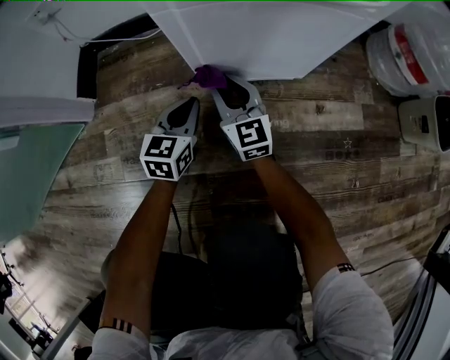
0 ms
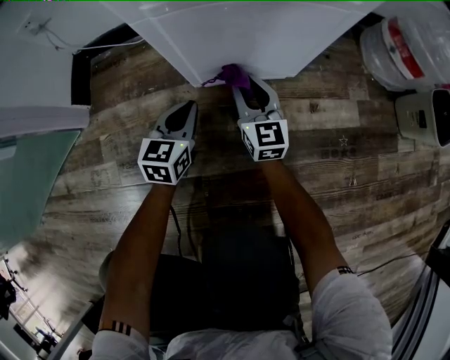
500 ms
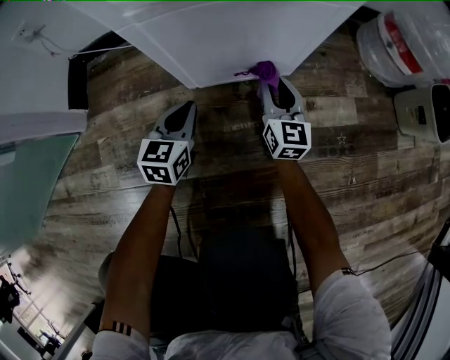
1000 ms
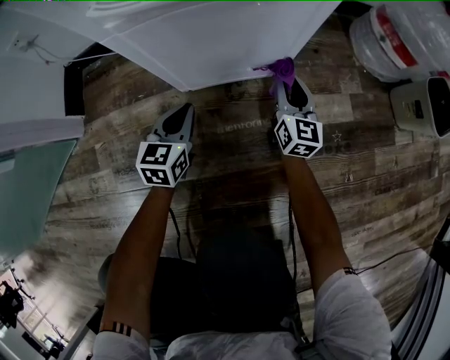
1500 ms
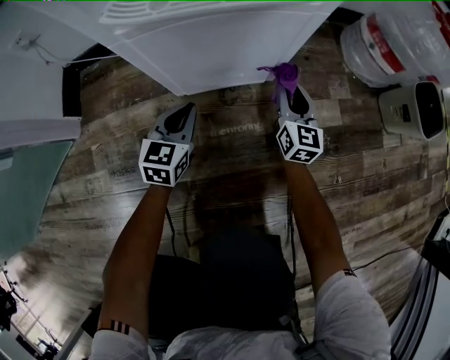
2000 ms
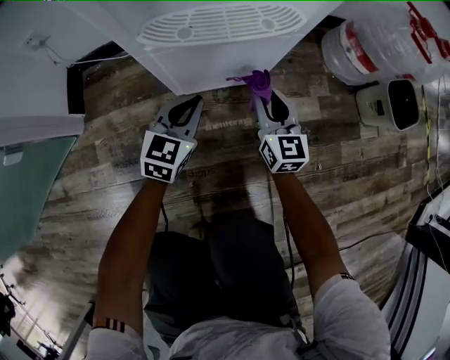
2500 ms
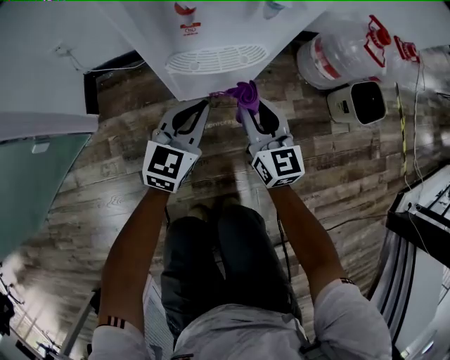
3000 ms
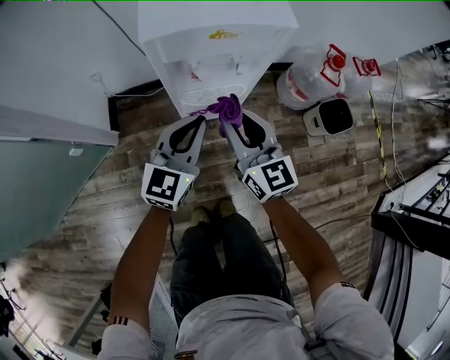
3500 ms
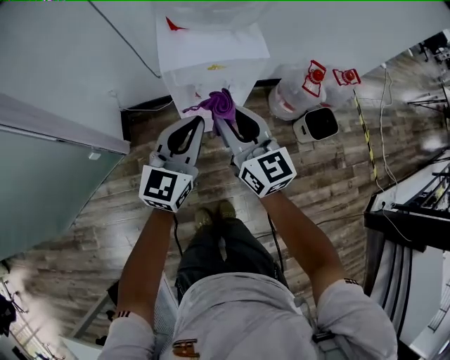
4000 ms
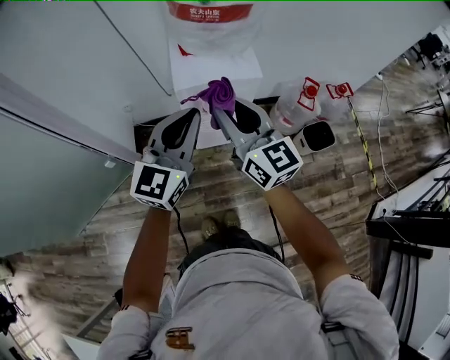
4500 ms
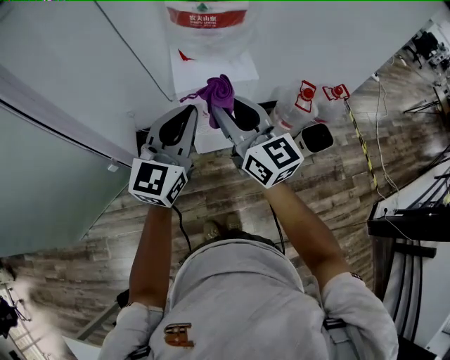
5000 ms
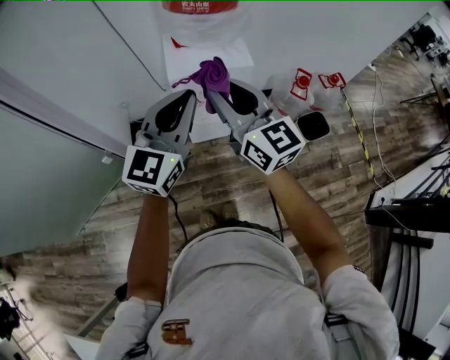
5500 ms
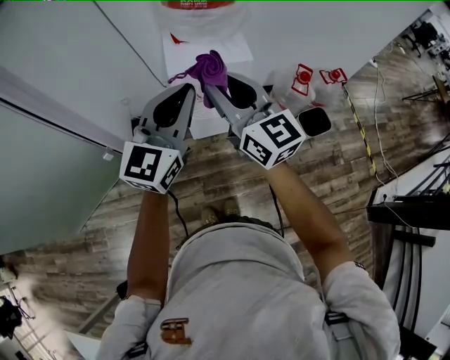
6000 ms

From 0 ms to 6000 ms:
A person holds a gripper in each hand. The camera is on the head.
From 0 ms to 2000 ms: The left gripper is displaced to the right by about 5 cm, while the right gripper heads to the right, covering about 25 cm, and turns by approximately 30 degrees.
From 2000 ms to 4000 ms: Both grippers move upward, about 80 cm. The right gripper turns by some 30 degrees, while the left gripper swivels about 30 degrees.
From 4000 ms to 6000 ms: Both grippers travel together upward, roughly 20 cm.

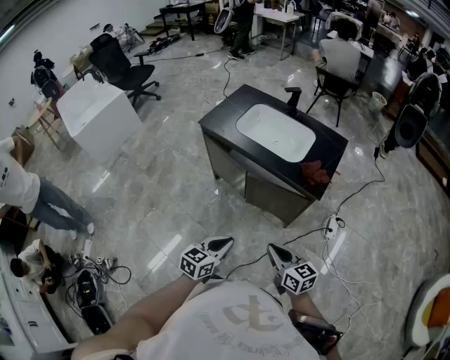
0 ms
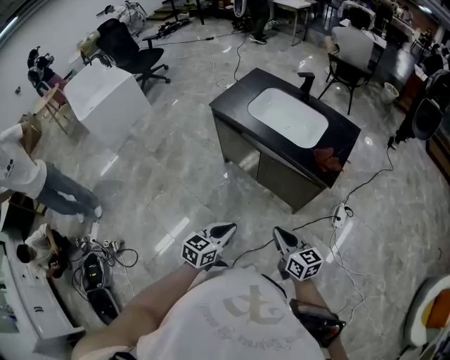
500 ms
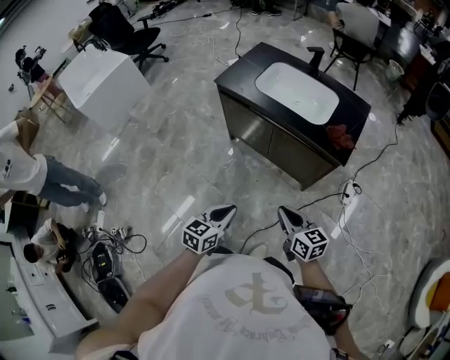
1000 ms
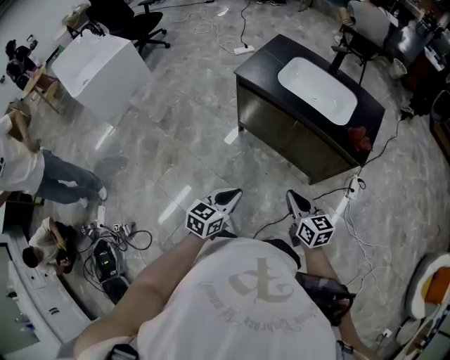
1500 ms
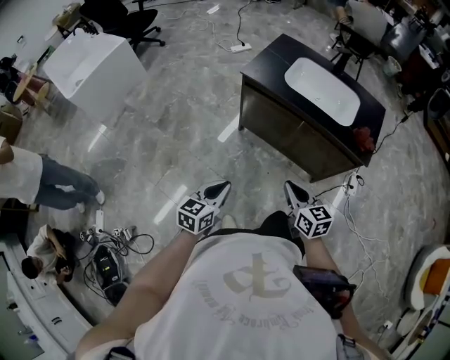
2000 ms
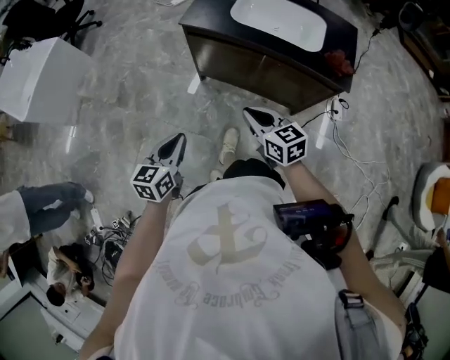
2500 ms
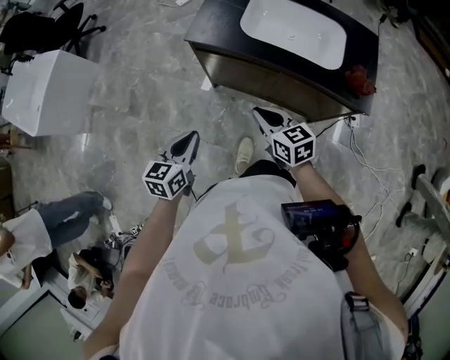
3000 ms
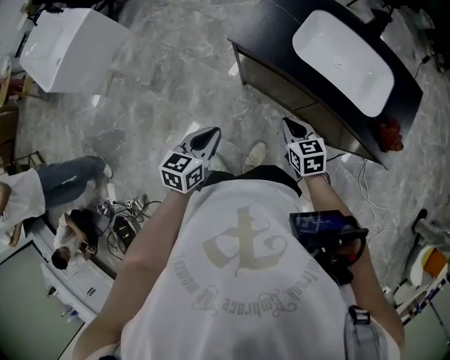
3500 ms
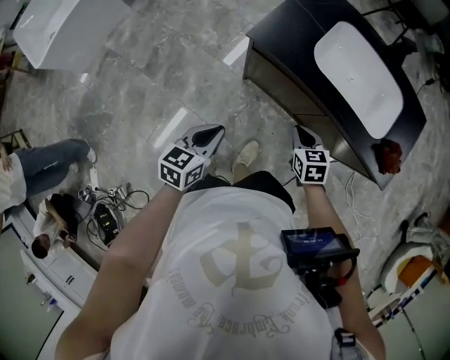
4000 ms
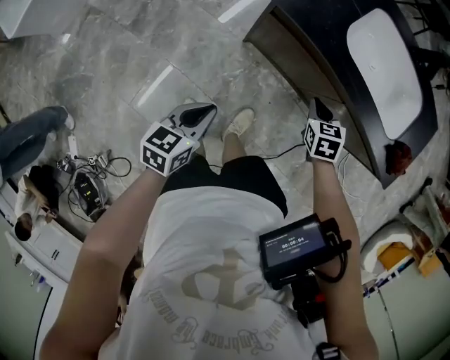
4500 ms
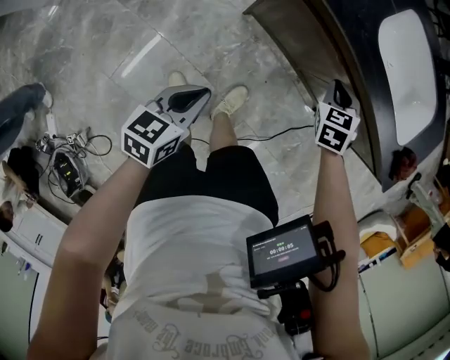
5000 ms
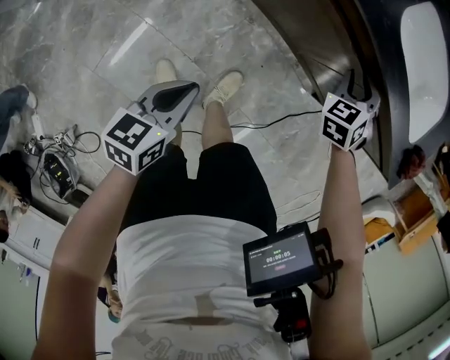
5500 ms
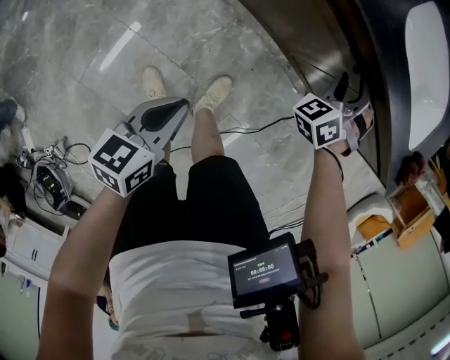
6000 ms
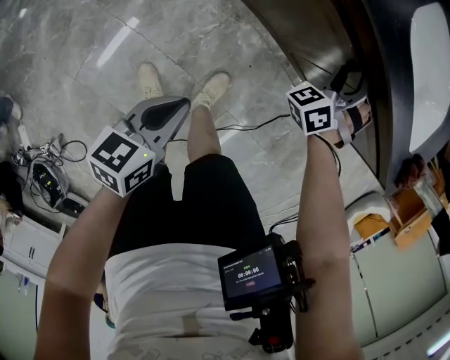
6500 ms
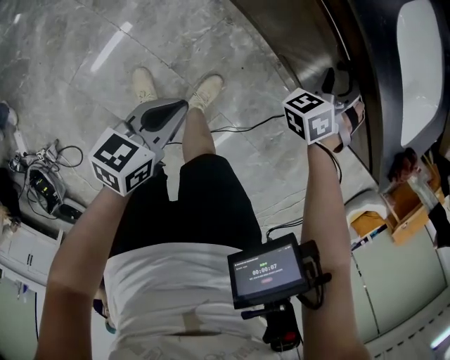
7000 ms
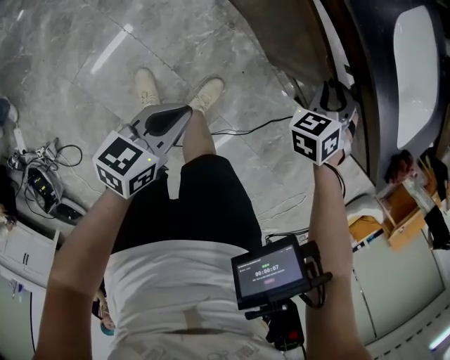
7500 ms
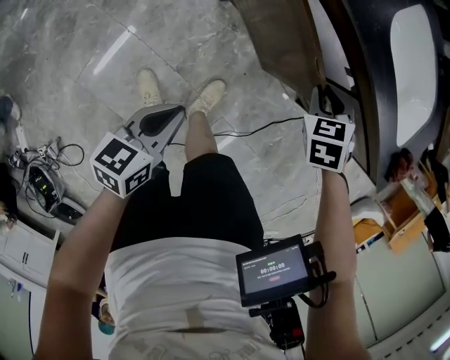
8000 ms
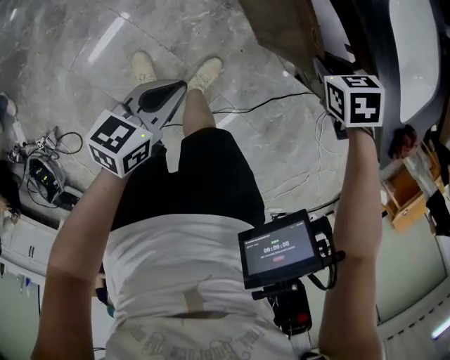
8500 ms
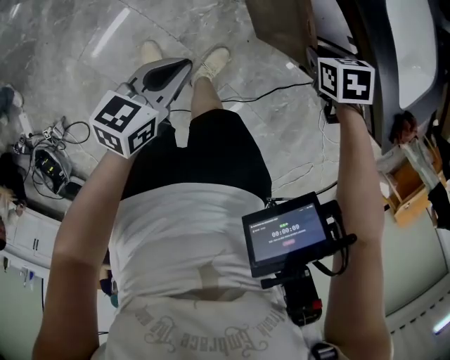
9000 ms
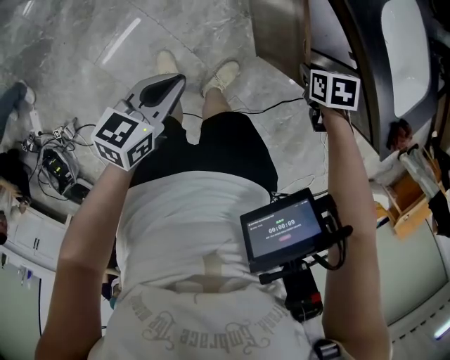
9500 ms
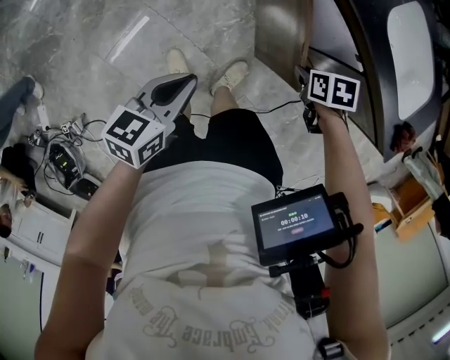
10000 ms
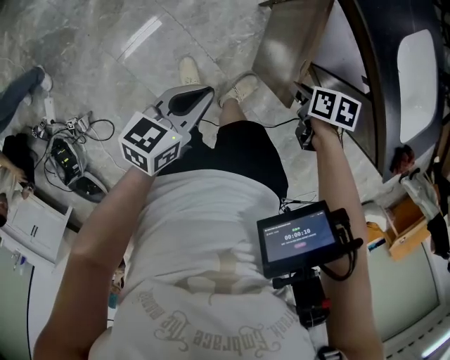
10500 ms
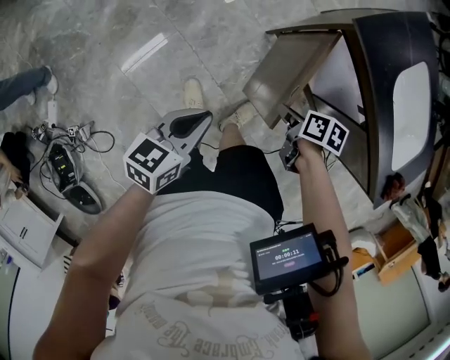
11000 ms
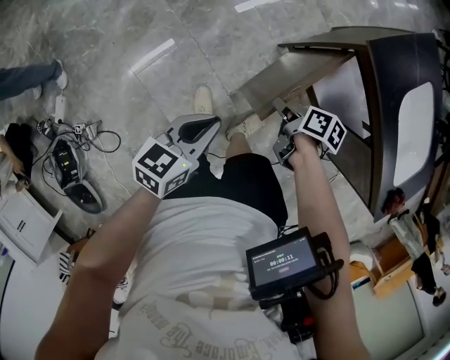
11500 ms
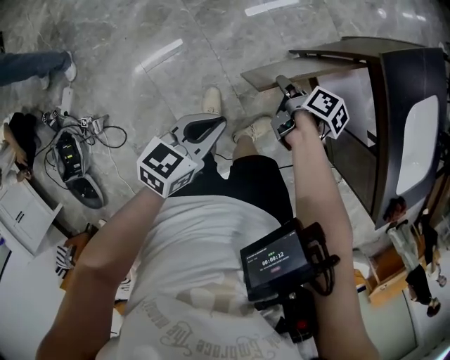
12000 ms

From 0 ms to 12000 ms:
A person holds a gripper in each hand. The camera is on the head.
From 0 ms to 2000 ms: Both grippers travel together to the left, about 25 cm.
From 2000 ms to 4000 ms: The right gripper is displaced forward and downward by roughly 35 cm, and turns by approximately 30 degrees; the left gripper goes some 25 cm forward.
From 4000 ms to 6000 ms: The left gripper is displaced downward by approximately 20 cm; the right gripper shifts by about 20 cm, swivels about 70 degrees, and opens up.
From 6000 ms to 8000 ms: The right gripper travels backward by approximately 10 cm, tilts its fingers approximately 30 degrees downward, and closes.
From 8000 ms to 10000 ms: The right gripper changes place by approximately 10 cm, and turns by some 40 degrees. The left gripper goes roughly 10 cm upward.
From 10000 ms to 12000 ms: The right gripper moves about 25 cm, and swivels some 40 degrees; the left gripper shifts by about 10 cm.

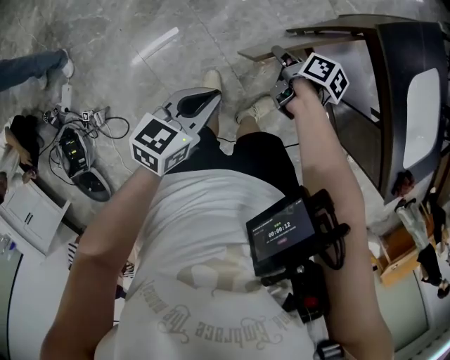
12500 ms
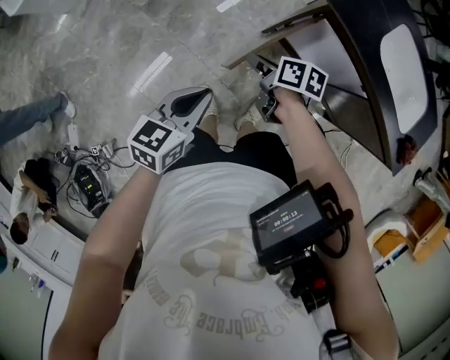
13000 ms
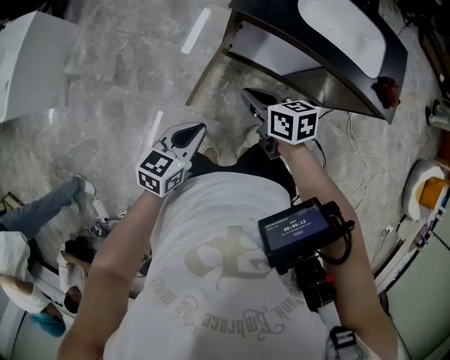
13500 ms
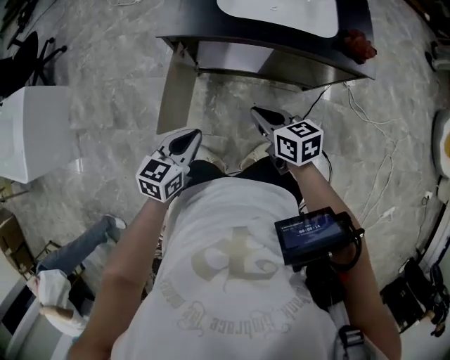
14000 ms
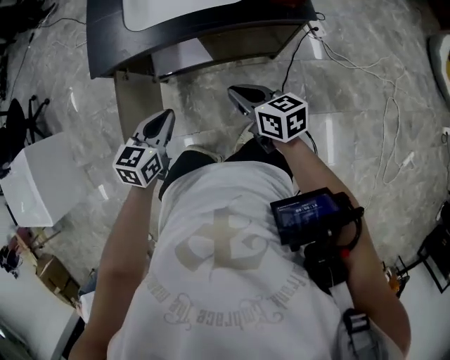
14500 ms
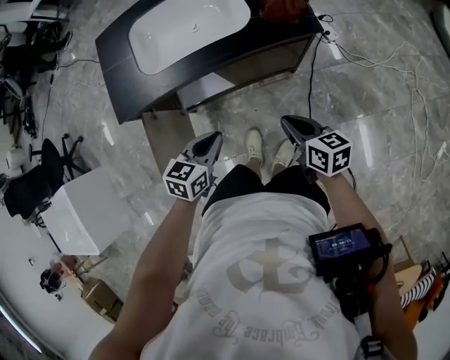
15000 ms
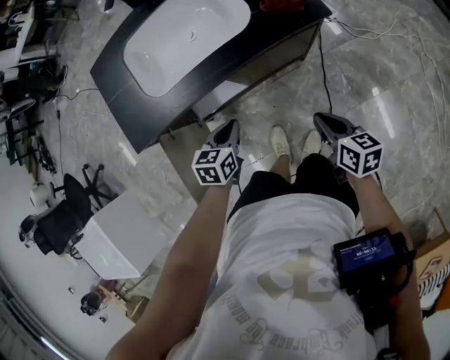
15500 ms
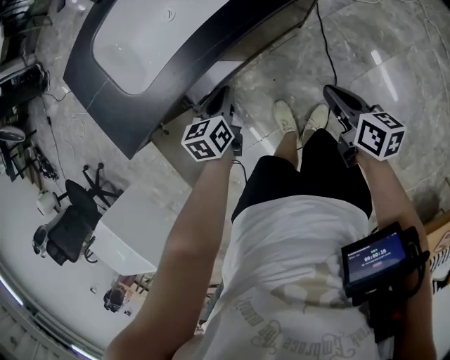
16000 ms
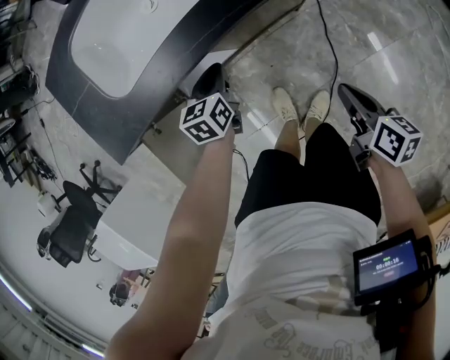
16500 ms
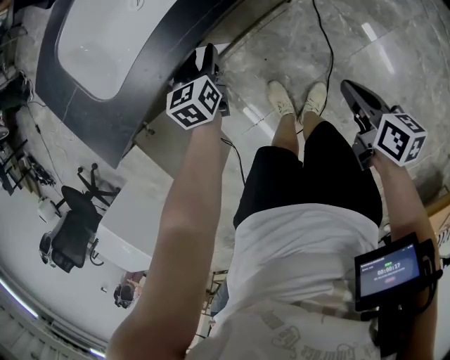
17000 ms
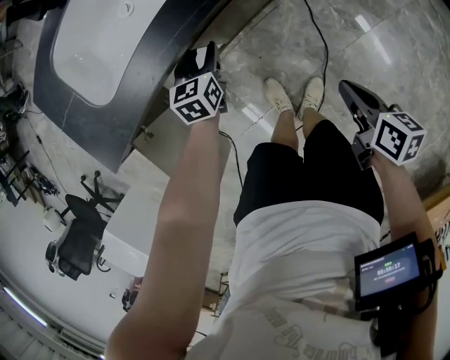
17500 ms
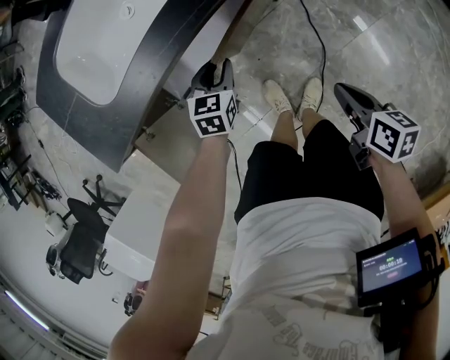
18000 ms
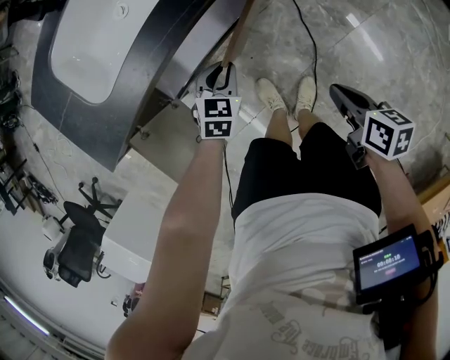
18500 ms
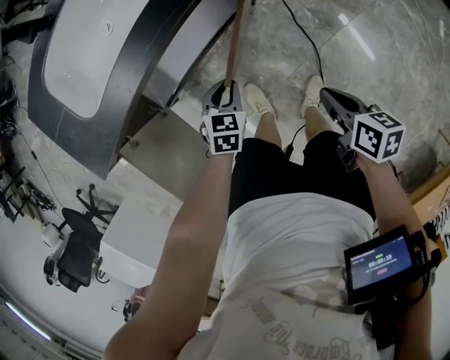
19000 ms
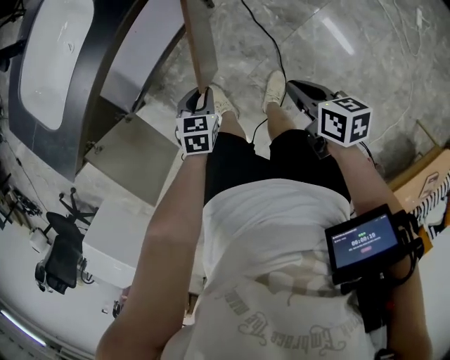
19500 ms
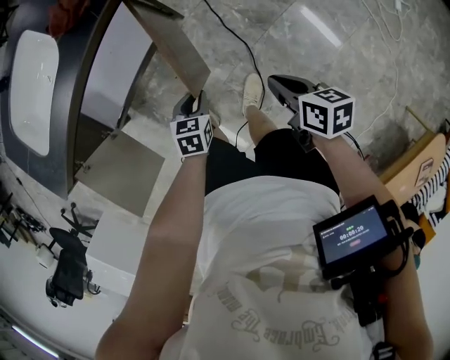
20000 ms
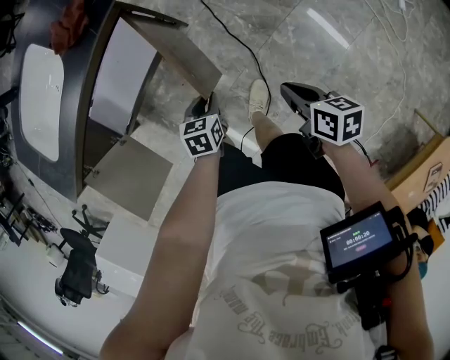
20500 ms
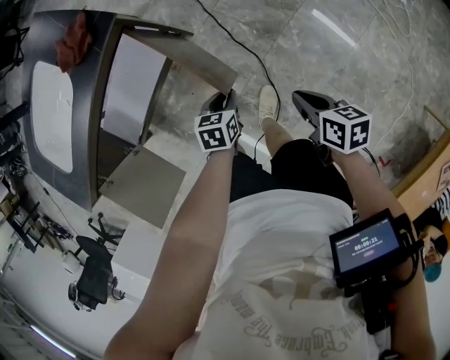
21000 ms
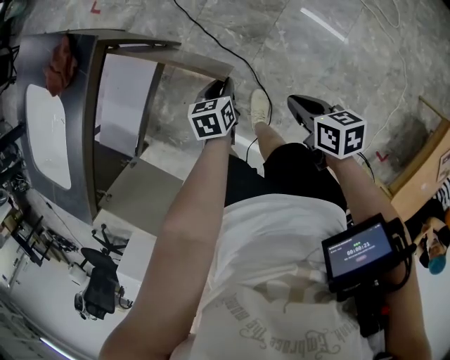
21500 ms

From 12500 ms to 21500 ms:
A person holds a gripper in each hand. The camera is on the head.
From 12500 ms to 14500 ms: The right gripper moves some 50 cm, turns by about 50 degrees, and closes, while the left gripper moves approximately 40 cm, and swivels roughly 50 degrees.
From 14500 ms to 17000 ms: The right gripper moves downward and to the right, roughly 20 cm, and changes its angle by about 50 degrees. Meanwhile the left gripper goes about 35 cm forward and downward, and opens its fingers.
From 17000 ms to 19500 ms: The right gripper heads to the right and backward, covering roughly 15 cm. The left gripper is displaced to the right and backward by roughly 30 cm, swivels roughly 30 degrees, and closes its fingers.
From 19500 ms to 21500 ms: The two grippers go roughly 20 cm to the right.
